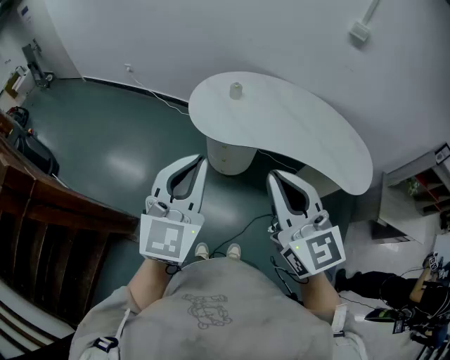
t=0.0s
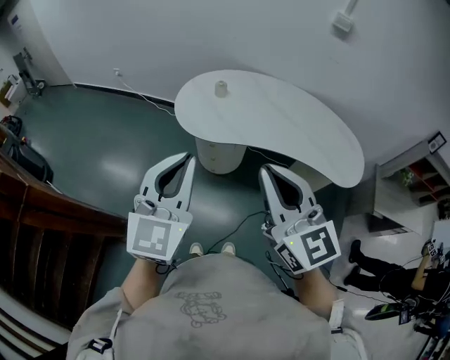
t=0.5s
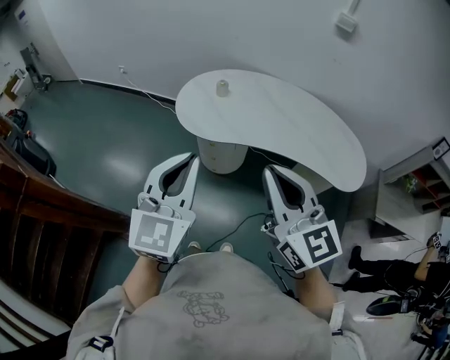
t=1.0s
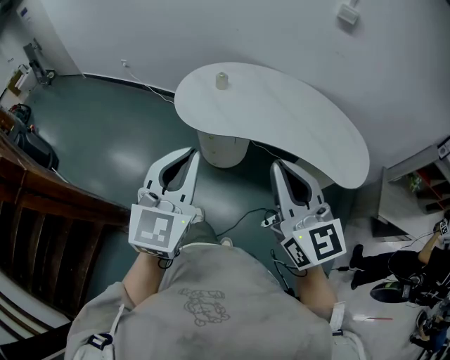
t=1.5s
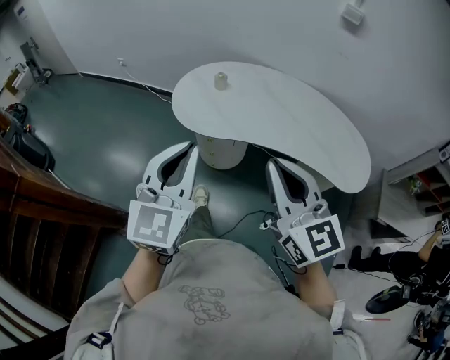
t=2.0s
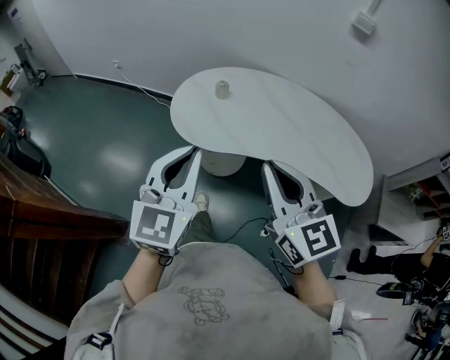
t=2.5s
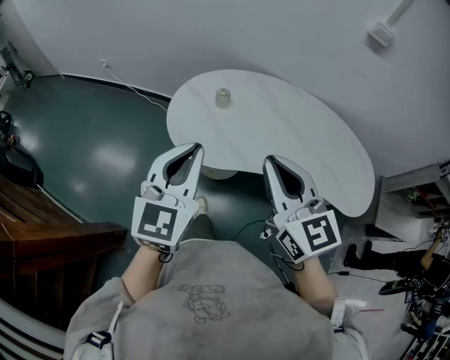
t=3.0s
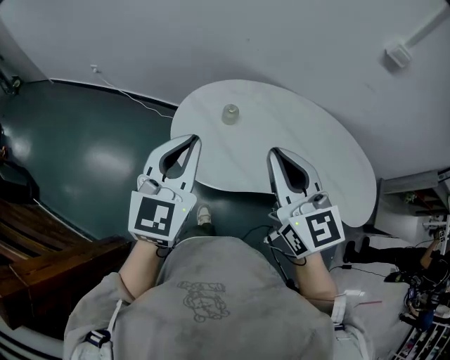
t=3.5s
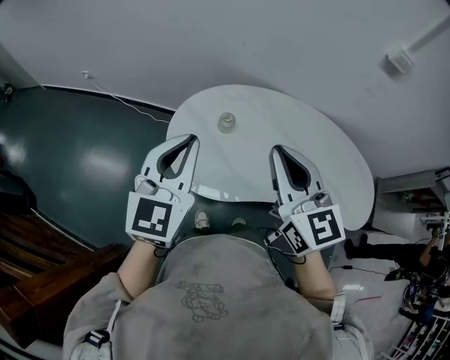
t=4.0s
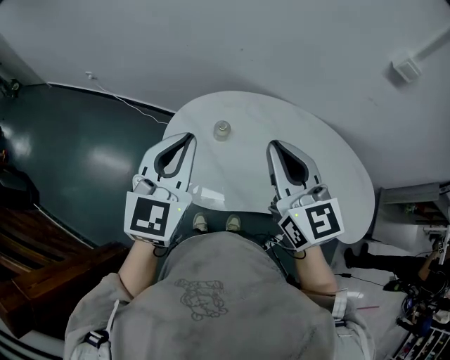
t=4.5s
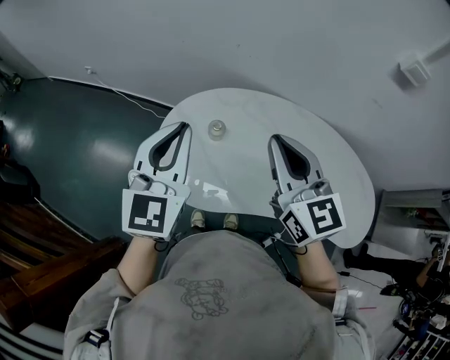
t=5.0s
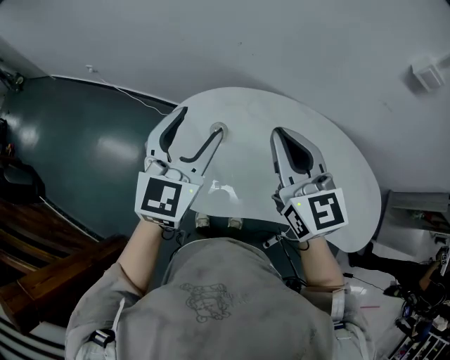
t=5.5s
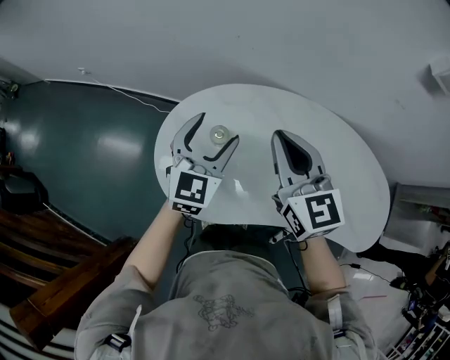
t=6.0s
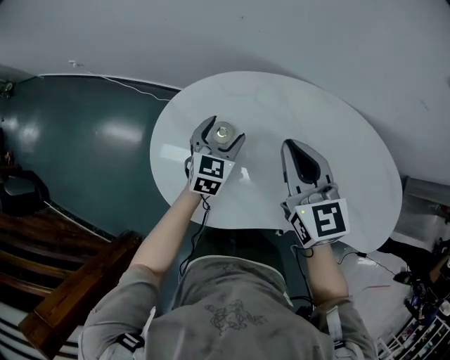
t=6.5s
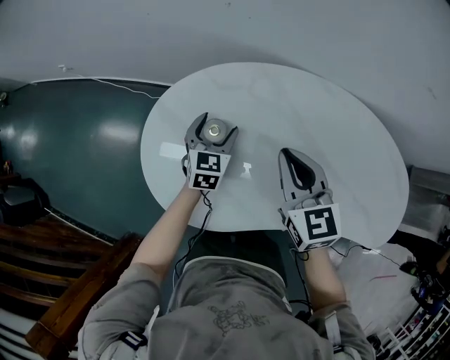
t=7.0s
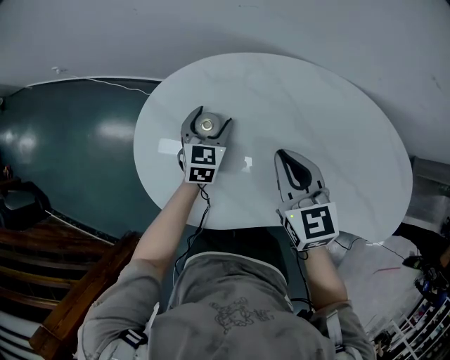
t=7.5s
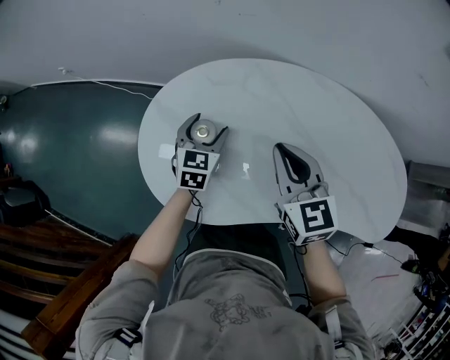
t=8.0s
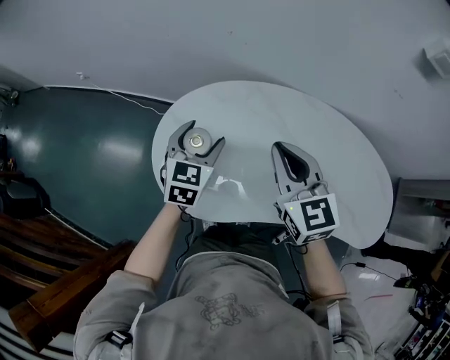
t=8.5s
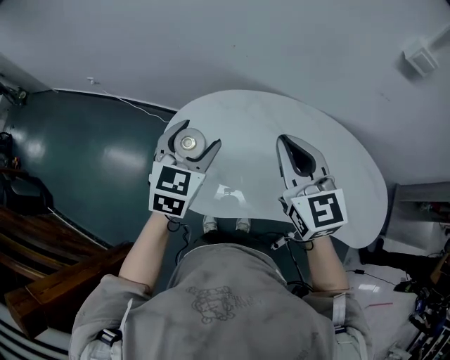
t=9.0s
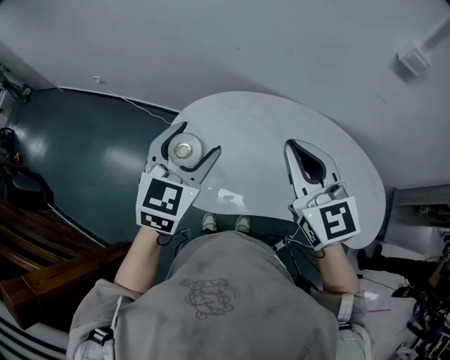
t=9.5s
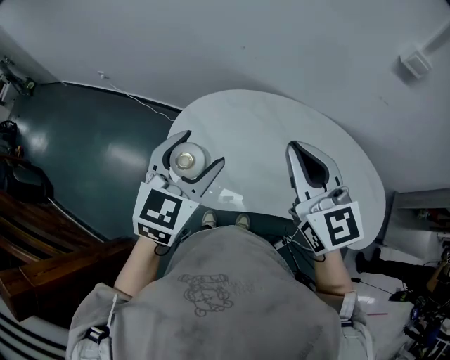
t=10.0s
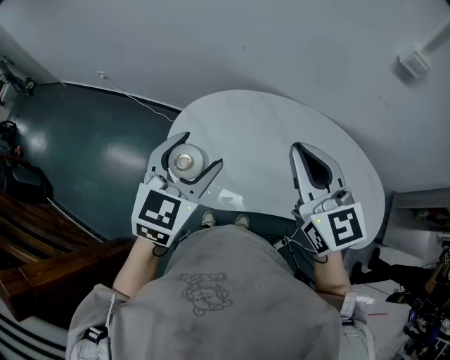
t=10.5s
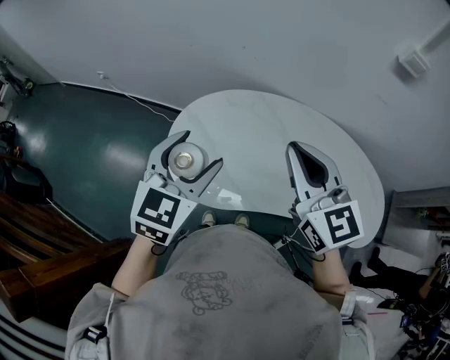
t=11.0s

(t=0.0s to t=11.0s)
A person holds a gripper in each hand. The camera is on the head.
t=0.0s - t=2.0s: Both grippers travel together to the right, some 10 cm.
t=2.0s - t=3.5s: Both grippers travel together forward, some 30 cm.
t=3.5s - t=5.5s: The two grippers go roughly 20 cm forward and to the right. The left gripper opens its fingers.
t=5.5s - t=7.5s: The left gripper heads downward, covering about 35 cm, and rotates about 20 degrees, while the right gripper goes roughly 25 cm downward, and rotates about 20 degrees.
t=7.5s - t=9.0s: The right gripper goes some 20 cm upward; the left gripper shifts approximately 35 cm upward and backward.
t=9.0s - t=11.0s: Both grippers move backward and upward, approximately 10 cm.

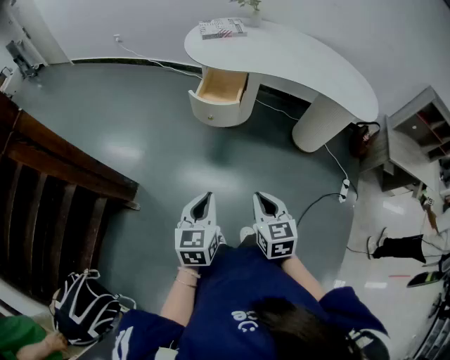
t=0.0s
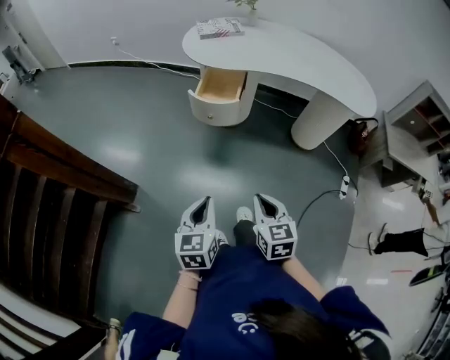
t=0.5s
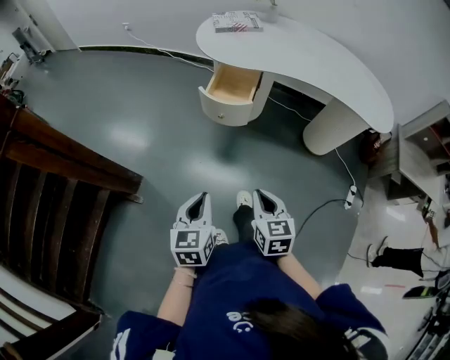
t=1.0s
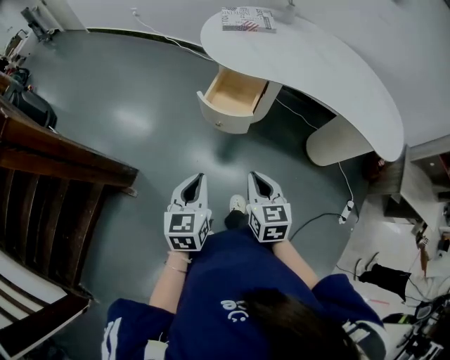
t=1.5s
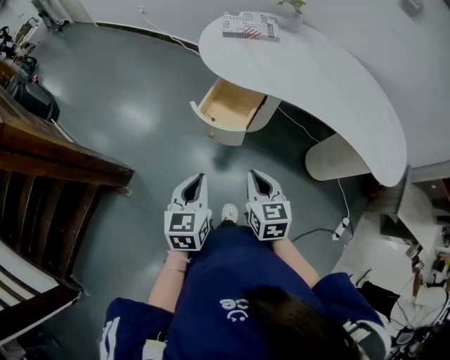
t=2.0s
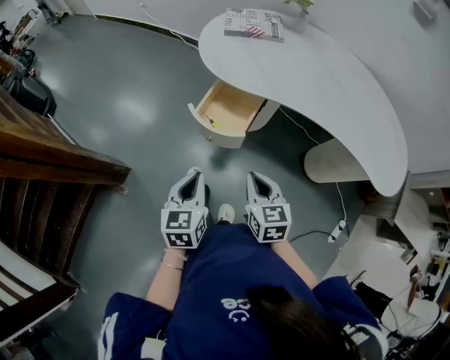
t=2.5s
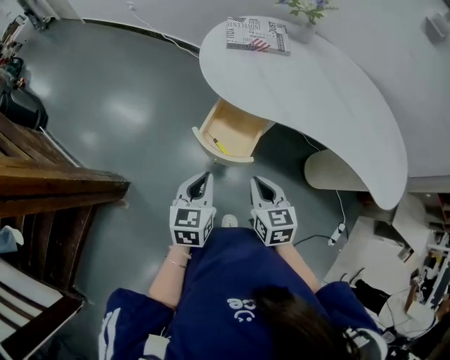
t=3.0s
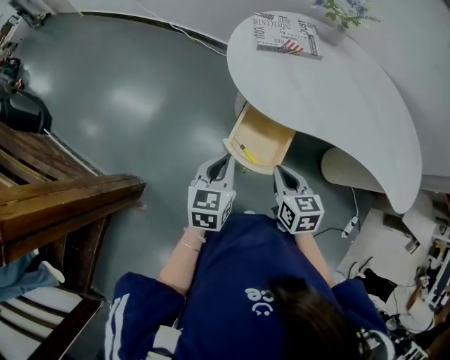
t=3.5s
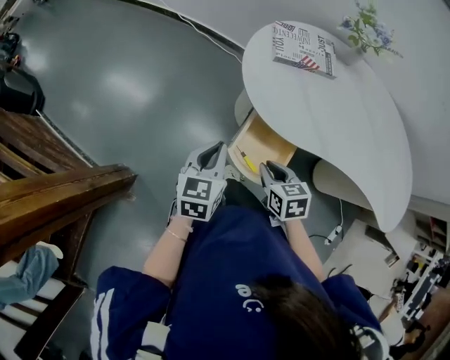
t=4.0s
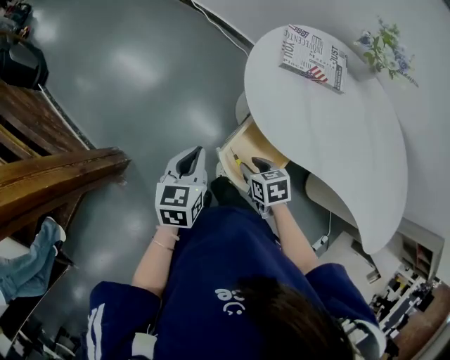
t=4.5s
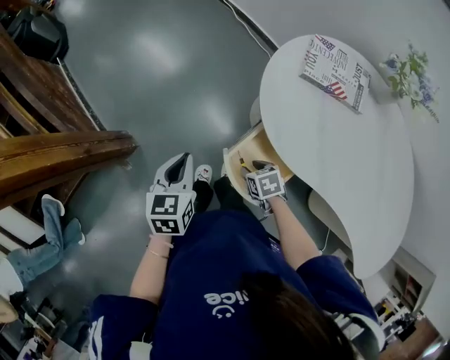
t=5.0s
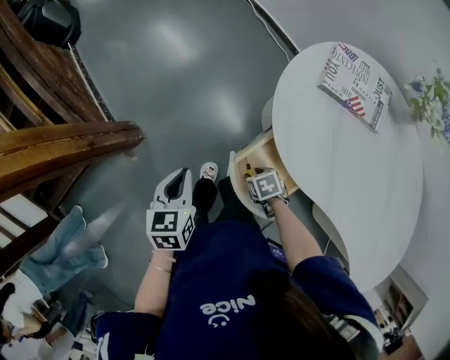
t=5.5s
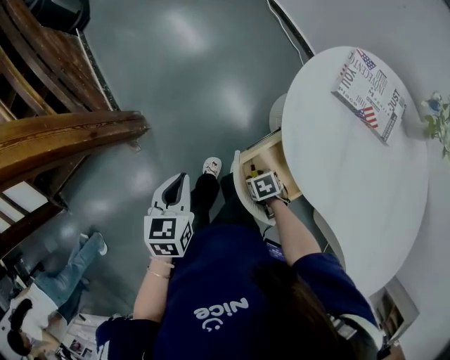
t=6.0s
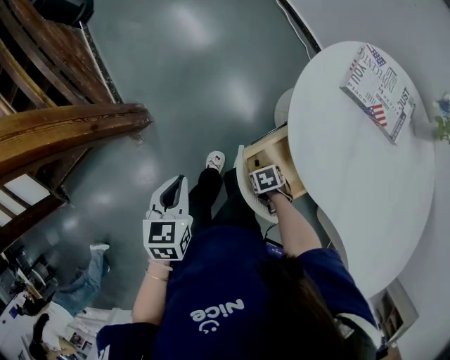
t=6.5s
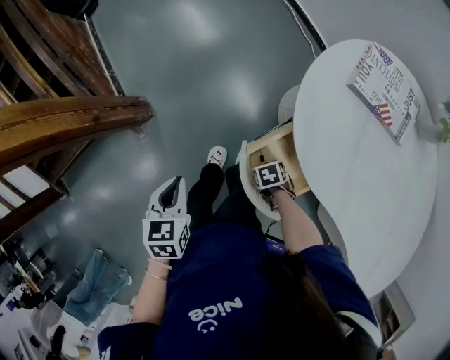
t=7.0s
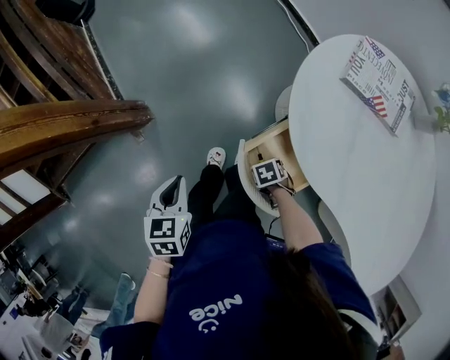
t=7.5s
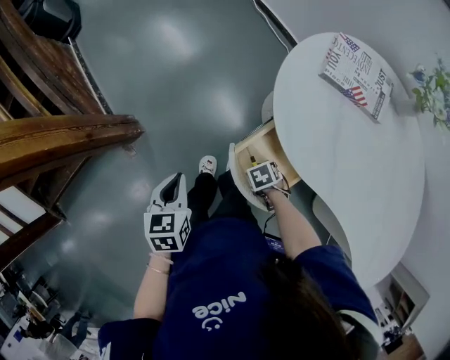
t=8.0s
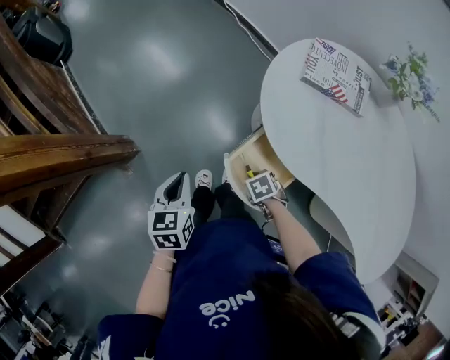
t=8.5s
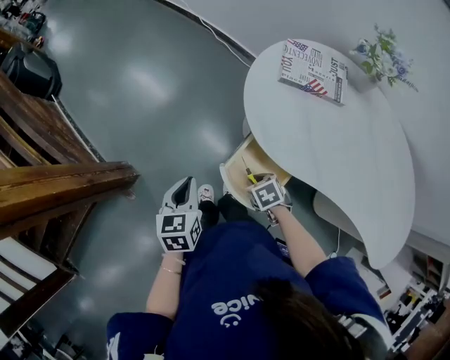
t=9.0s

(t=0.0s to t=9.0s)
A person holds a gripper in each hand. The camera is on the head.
t=0.0s - t=2.0s: Both grippers travel together forward, approximately 25 cm.
t=2.0s - t=4.5s: The left gripper heads forward, covering approximately 35 cm, while the right gripper moves forward and downward, roughly 30 cm, tilts its fingers some 30 degrees downward, and opens.
t=4.5s - t=7.0s: The right gripper goes roughly 20 cm downward, and turns by some 40 degrees; the left gripper changes place by roughly 15 cm, and turns by some 30 degrees.
t=7.0s - t=9.0s: The left gripper changes place by roughly 10 cm, and swivels about 20 degrees. The right gripper shifts some 15 cm upward.

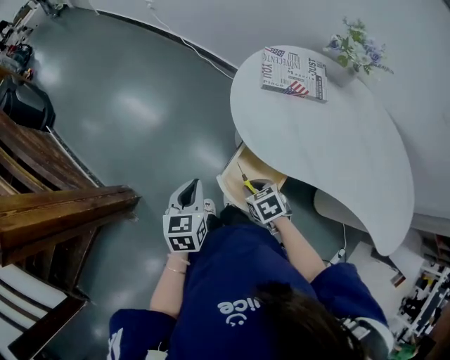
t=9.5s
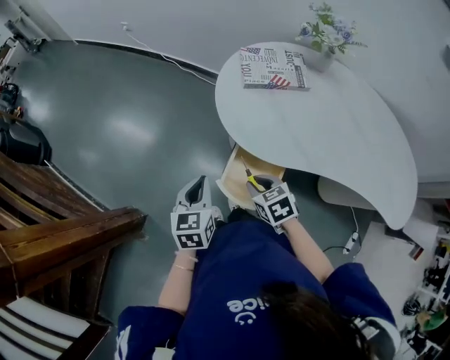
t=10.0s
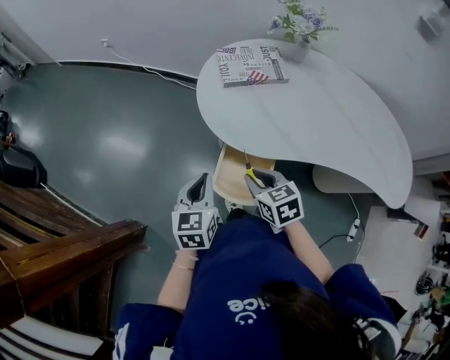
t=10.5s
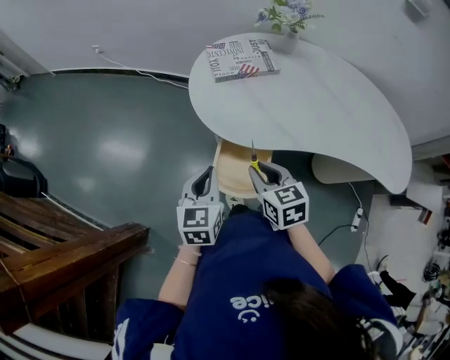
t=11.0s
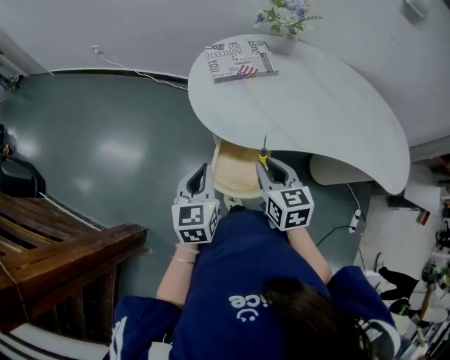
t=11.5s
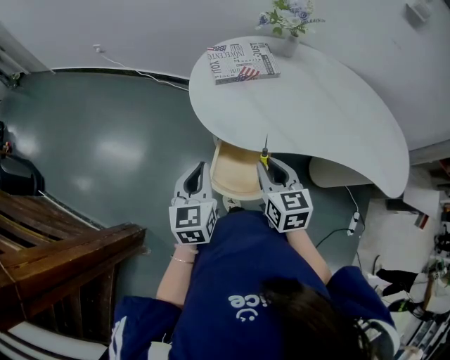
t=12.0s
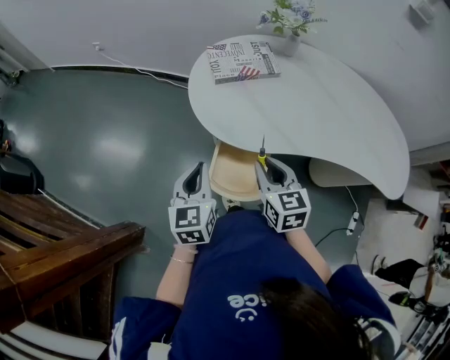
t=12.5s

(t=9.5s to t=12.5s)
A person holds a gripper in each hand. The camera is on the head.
t=9.5s - t=11.0s: The left gripper changes place by about 10 cm, and changes its angle by approximately 20 degrees; the right gripper heads upward, covering roughly 15 cm, and turns by about 40 degrees.
t=11.0s - t=12.5s: The grippers move only a little.

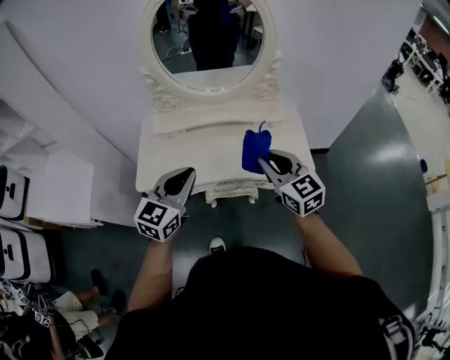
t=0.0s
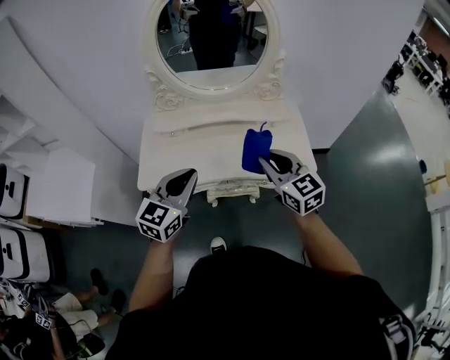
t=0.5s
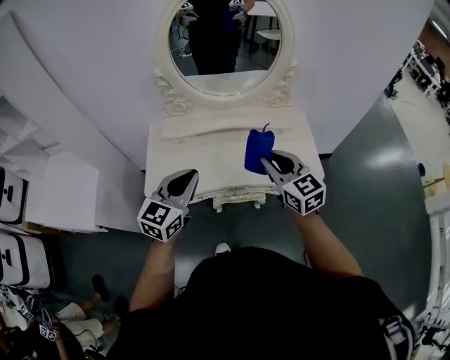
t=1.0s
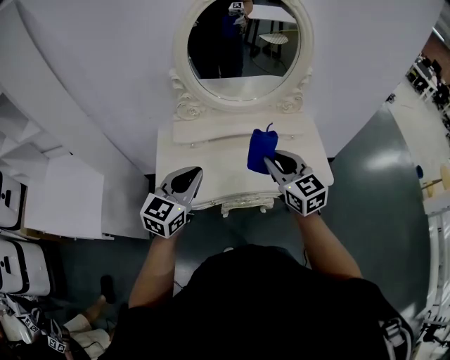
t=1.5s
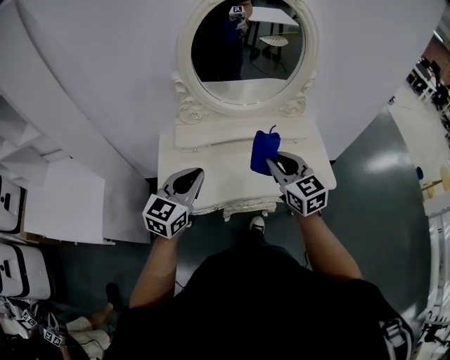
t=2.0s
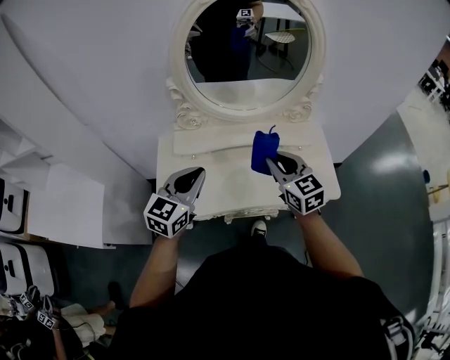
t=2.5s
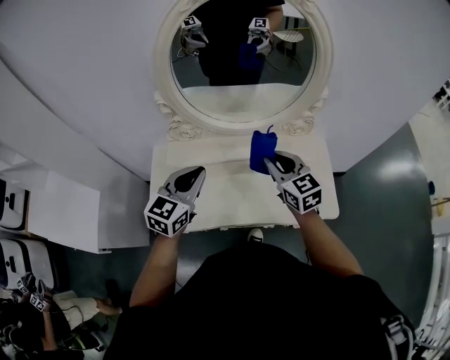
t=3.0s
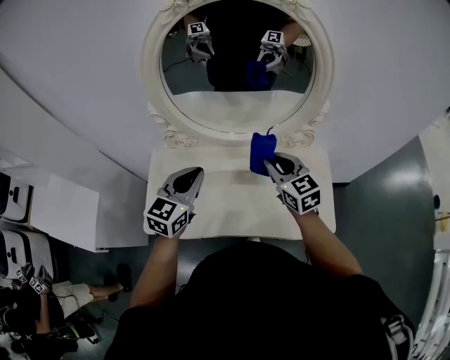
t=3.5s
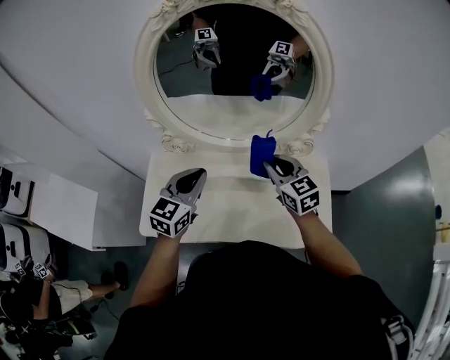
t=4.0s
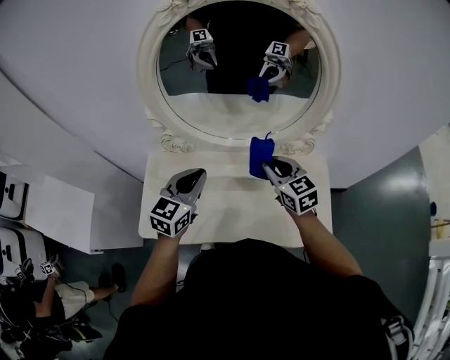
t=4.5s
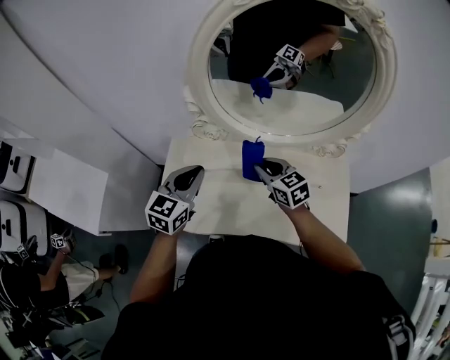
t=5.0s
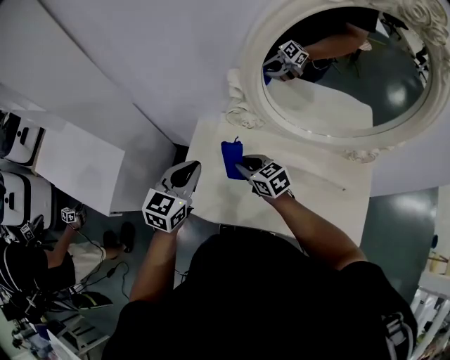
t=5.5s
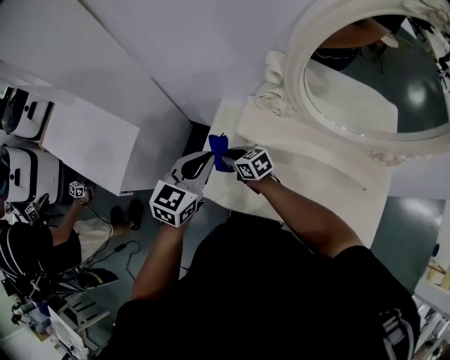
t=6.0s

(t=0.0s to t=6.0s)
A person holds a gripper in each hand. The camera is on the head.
t=0.0s - t=2.0s: The grippers both shift to the left and forward by some 15 cm.
t=2.0s - t=4.0s: Both grippers move forward and to the right, approximately 30 cm.
t=4.0s - t=6.0s: The right gripper shifts by some 50 cm, and changes its angle by about 50 degrees. The left gripper changes place by roughly 30 cm.
